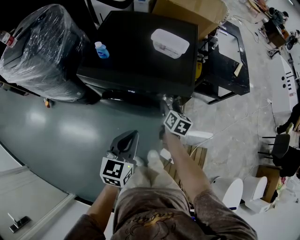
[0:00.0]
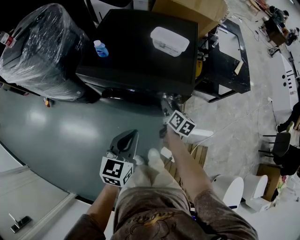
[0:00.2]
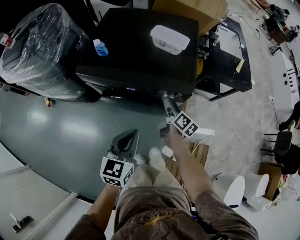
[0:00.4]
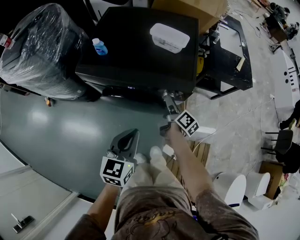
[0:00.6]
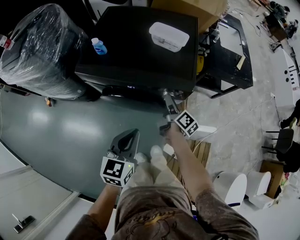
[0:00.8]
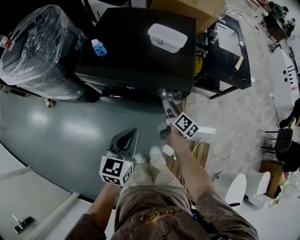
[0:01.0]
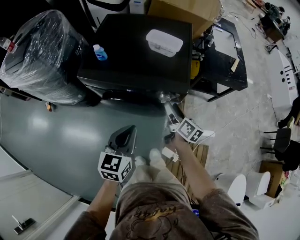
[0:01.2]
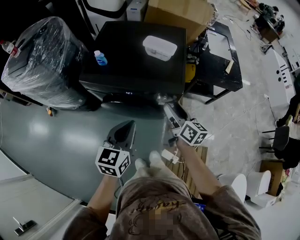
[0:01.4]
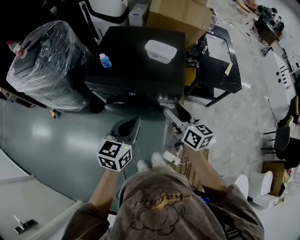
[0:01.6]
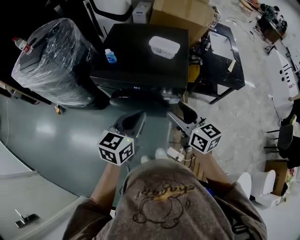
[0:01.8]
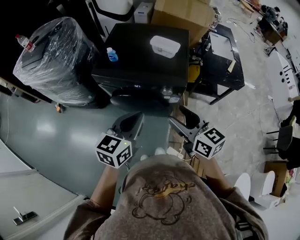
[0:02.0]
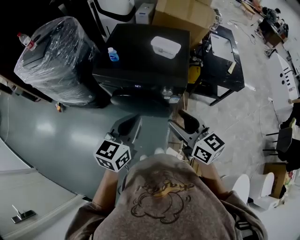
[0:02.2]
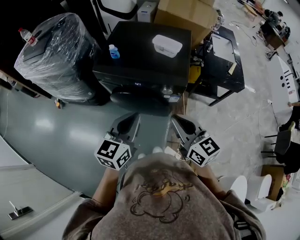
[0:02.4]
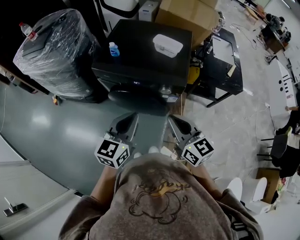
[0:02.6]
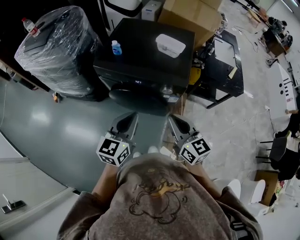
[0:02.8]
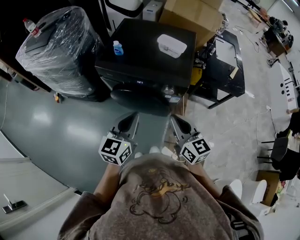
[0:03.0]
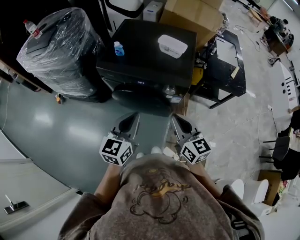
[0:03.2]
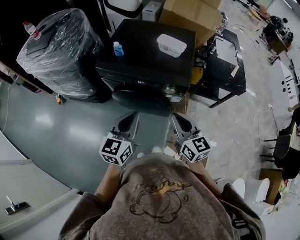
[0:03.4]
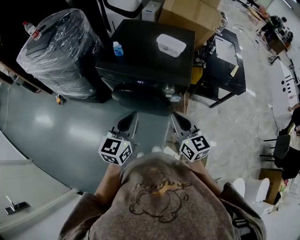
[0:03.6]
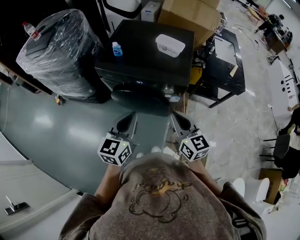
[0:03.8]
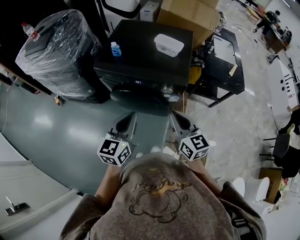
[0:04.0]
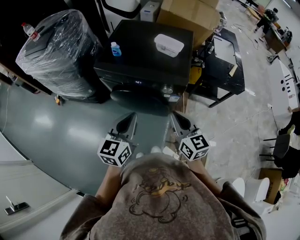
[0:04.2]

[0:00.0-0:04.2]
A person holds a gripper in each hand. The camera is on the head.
0:00.0 to 0:01.4: The right gripper is displaced upward by approximately 15 cm, and changes its angle by about 30 degrees. Meanwhile the left gripper heads upward, covering approximately 5 cm.
0:01.4 to 0:02.8: The left gripper heads backward, covering about 5 cm. Meanwhile the right gripper goes some 15 cm backward and upward, changes its angle by approximately 30 degrees, and closes.
0:02.8 to 0:04.2: The grippers move only a little.

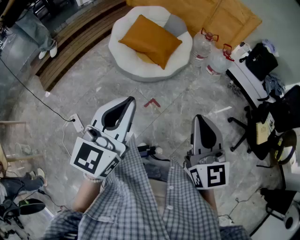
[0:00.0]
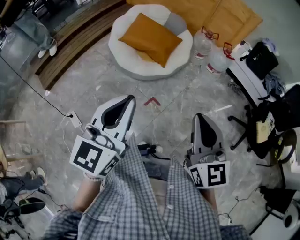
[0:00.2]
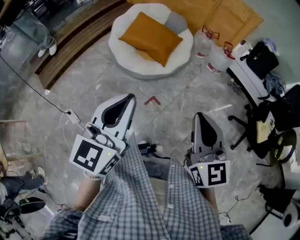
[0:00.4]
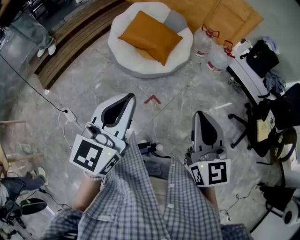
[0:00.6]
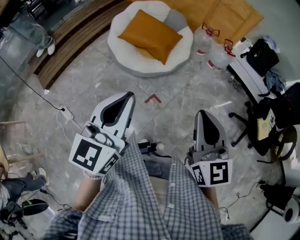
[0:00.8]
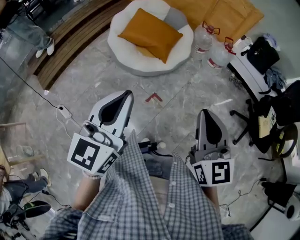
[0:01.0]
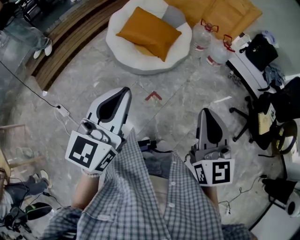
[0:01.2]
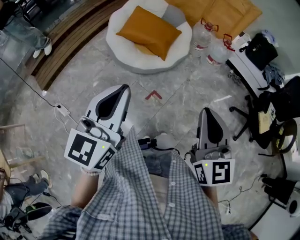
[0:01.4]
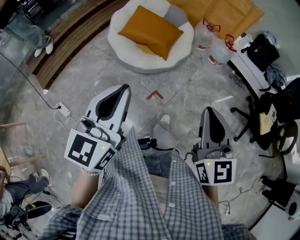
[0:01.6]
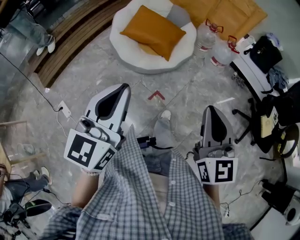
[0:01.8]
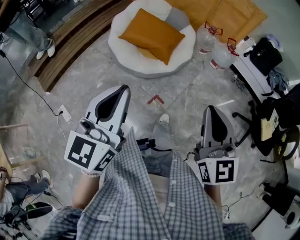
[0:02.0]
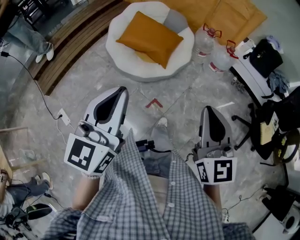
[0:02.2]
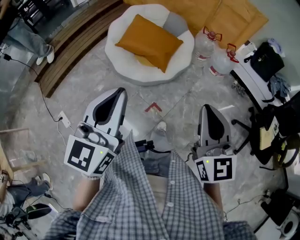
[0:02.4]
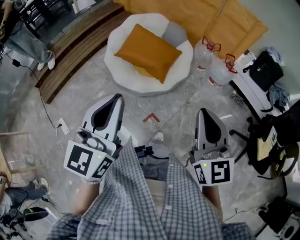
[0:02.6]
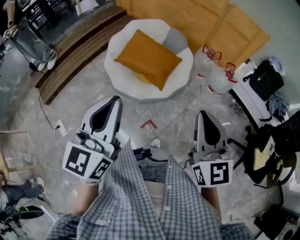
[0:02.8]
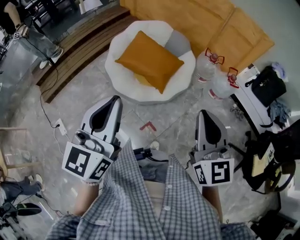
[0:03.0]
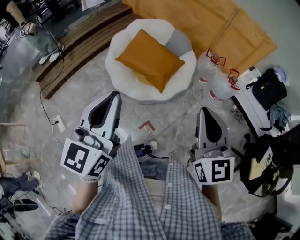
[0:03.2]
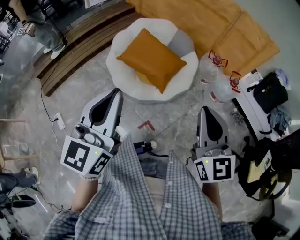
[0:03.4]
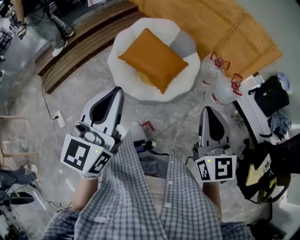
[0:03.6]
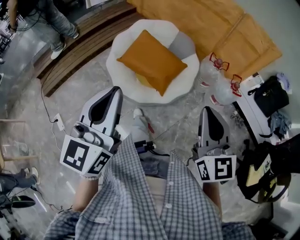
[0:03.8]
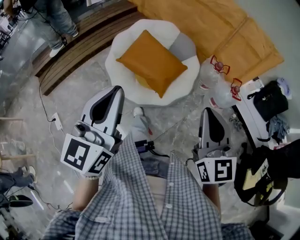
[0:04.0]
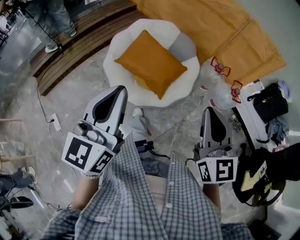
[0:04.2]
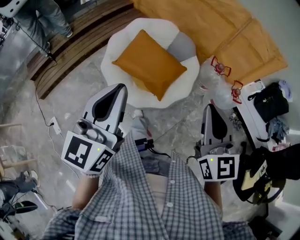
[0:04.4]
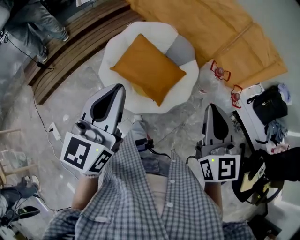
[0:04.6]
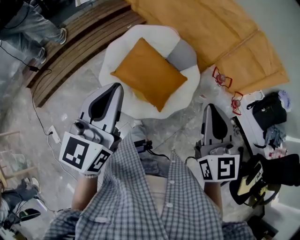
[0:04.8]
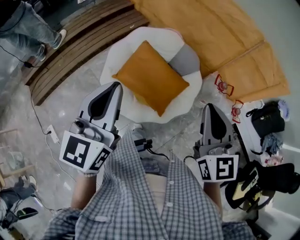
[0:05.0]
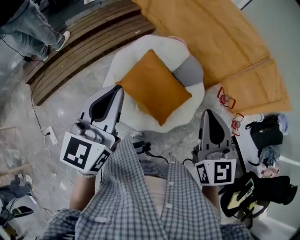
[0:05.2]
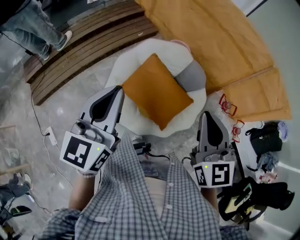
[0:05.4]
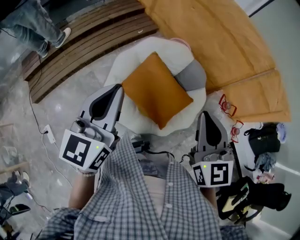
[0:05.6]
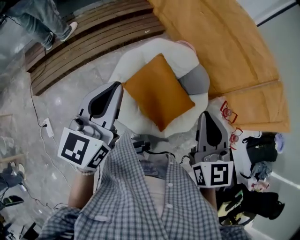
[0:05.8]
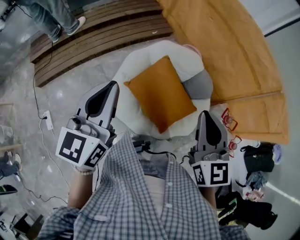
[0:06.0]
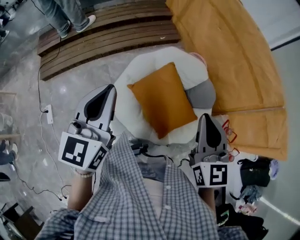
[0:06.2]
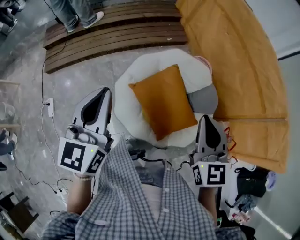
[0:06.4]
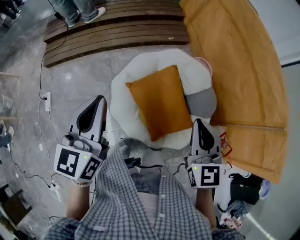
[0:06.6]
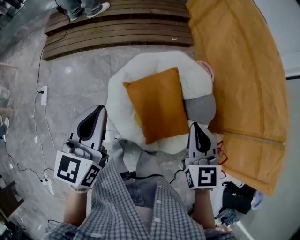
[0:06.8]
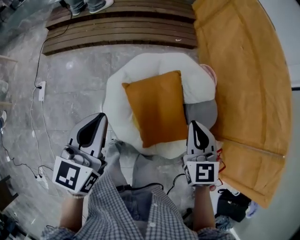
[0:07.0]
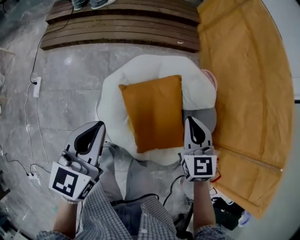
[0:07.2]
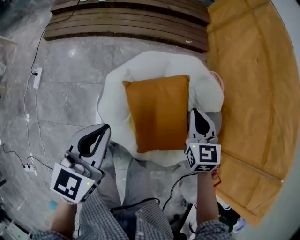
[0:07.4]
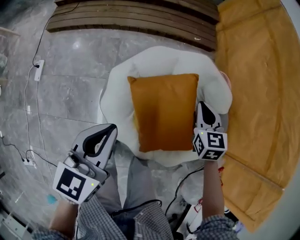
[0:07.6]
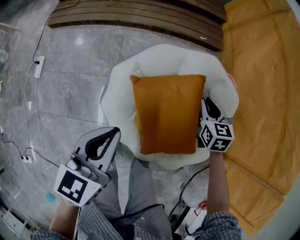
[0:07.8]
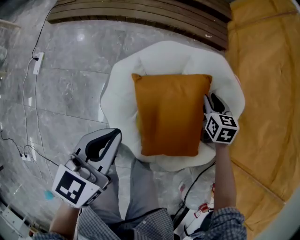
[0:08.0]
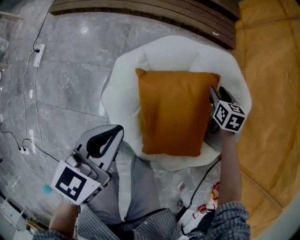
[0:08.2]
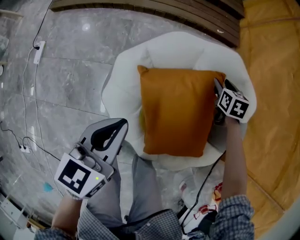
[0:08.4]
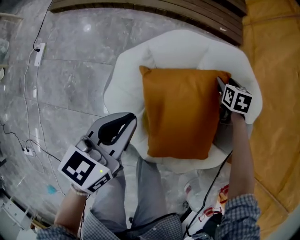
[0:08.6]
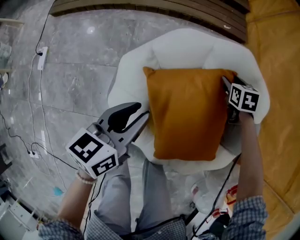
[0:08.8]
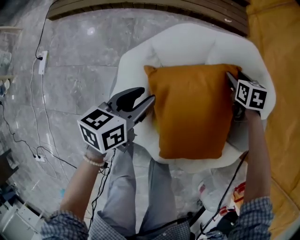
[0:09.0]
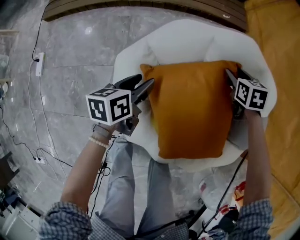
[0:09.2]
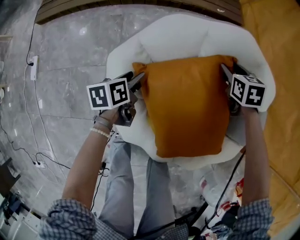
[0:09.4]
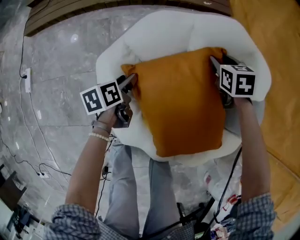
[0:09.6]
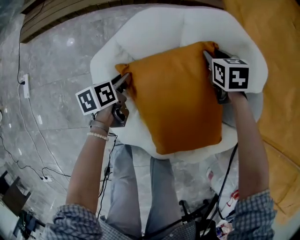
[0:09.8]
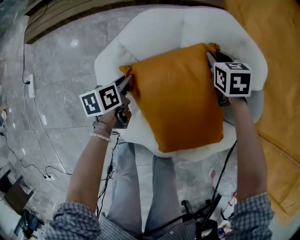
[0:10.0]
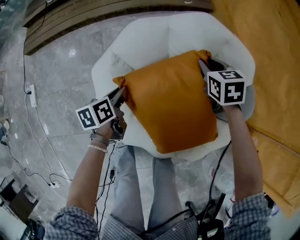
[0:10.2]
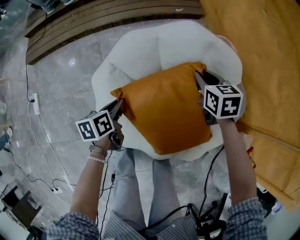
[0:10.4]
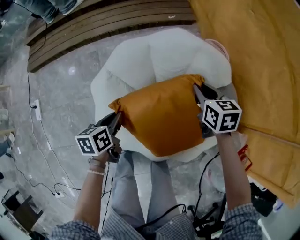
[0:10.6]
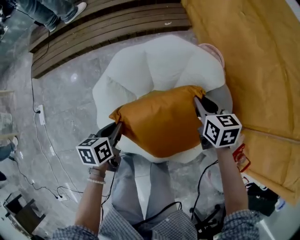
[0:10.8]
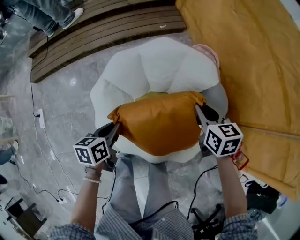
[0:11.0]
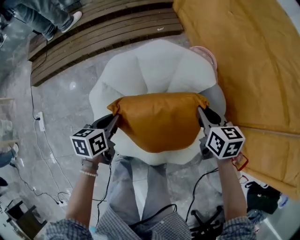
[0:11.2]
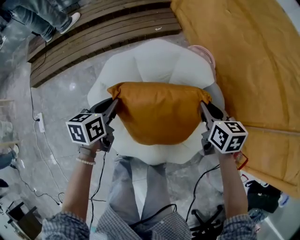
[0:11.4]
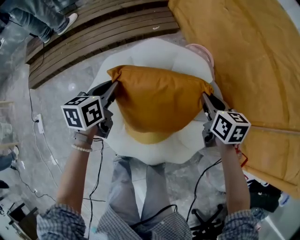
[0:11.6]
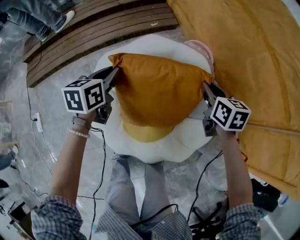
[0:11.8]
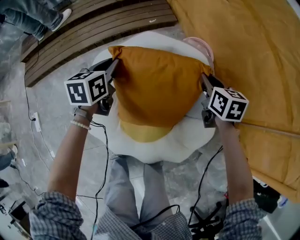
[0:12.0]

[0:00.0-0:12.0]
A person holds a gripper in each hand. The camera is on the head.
0:00.0 to 0:01.6: The left gripper moves to the left, some 5 cm.
0:01.6 to 0:03.0: The grippers both shift forward by approximately 20 cm.
0:03.0 to 0:04.4: Both grippers travel together forward, about 15 cm.
0:04.4 to 0:06.0: The two grippers go some 30 cm forward and to the left.
0:06.0 to 0:07.6: The left gripper travels downward by approximately 20 cm, and rotates some 30 degrees. The right gripper goes about 40 cm downward and forward, and changes its angle by about 30 degrees.
0:07.6 to 0:09.0: The right gripper travels downward and forward by some 25 cm, changes its angle by approximately 20 degrees, and opens, while the left gripper moves downward, about 25 cm, turns by some 30 degrees, and opens its fingers.
0:09.0 to 0:10.4: The right gripper moves upward and backward, roughly 15 cm, and closes its fingers; the left gripper goes downward and returns, approximately 15 cm each way, and closes its fingers.
0:10.4 to 0:12.0: The right gripper goes roughly 20 cm to the right and upward, and turns by approximately 20 degrees, while the left gripper moves forward, upward and to the right, some 25 cm, and changes its angle by some 30 degrees.

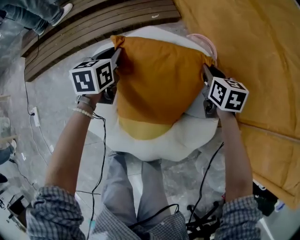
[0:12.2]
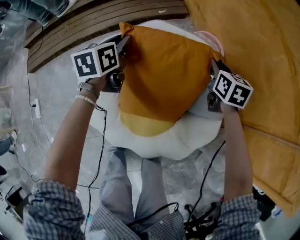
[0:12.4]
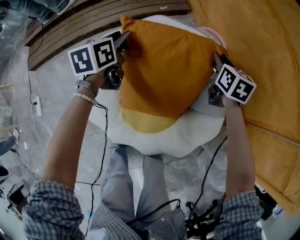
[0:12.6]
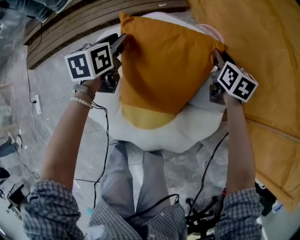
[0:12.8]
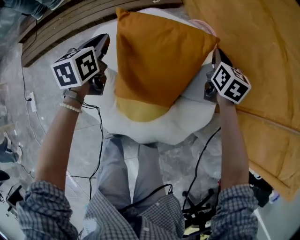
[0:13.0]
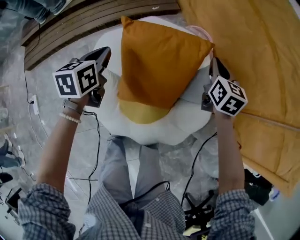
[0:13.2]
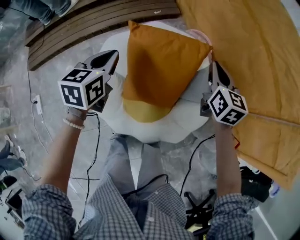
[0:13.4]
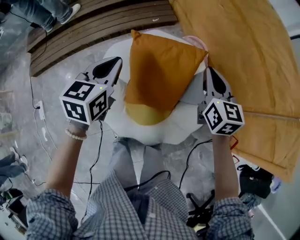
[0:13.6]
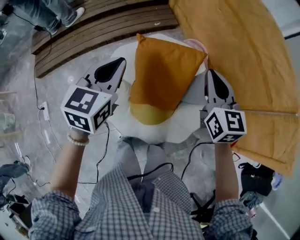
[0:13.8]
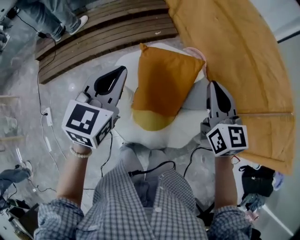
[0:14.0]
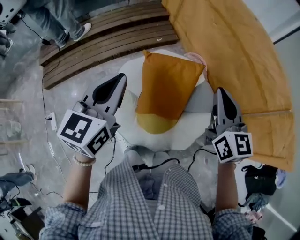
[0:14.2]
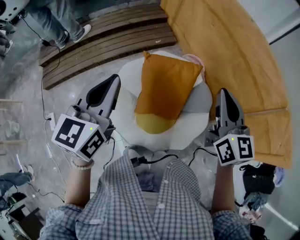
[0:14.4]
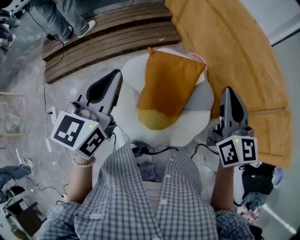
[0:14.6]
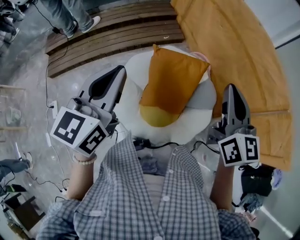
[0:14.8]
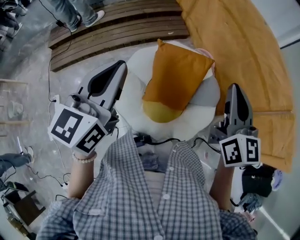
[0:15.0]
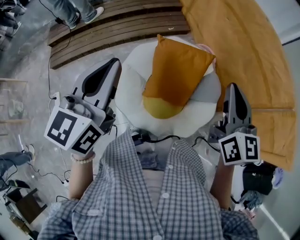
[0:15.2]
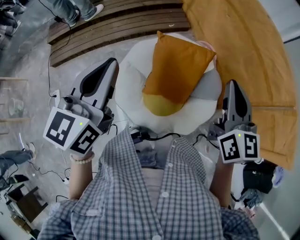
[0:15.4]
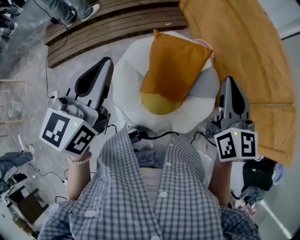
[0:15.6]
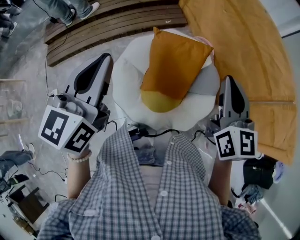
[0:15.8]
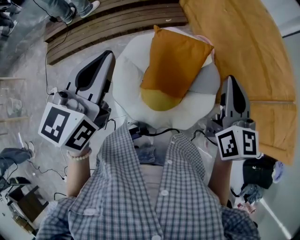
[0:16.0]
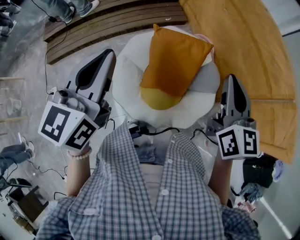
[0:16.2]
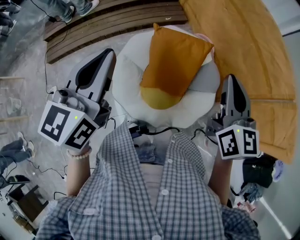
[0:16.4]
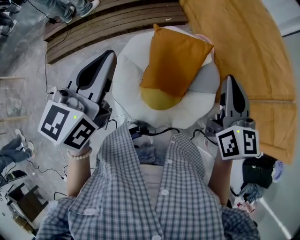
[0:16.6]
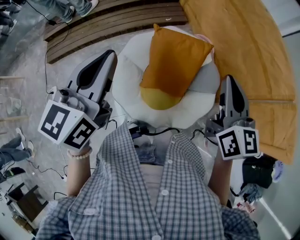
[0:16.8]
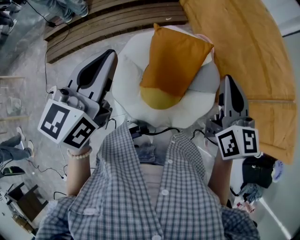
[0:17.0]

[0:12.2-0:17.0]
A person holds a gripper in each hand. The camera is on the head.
0:12.2 to 0:13.8: The grippers both shift upward and backward by roughly 30 cm. The left gripper swivels about 20 degrees, and opens, then closes again; the right gripper swivels approximately 30 degrees.
0:13.8 to 0:15.4: The two grippers go some 20 cm upward and backward.
0:15.4 to 0:17.0: There are only small adjustments of the grippers.

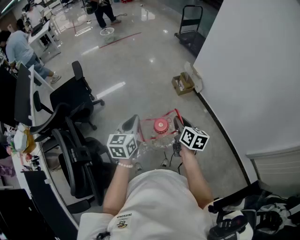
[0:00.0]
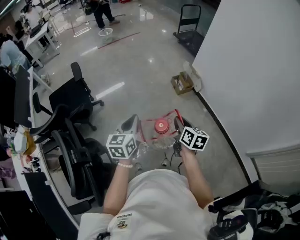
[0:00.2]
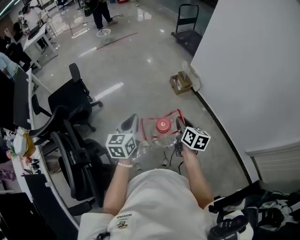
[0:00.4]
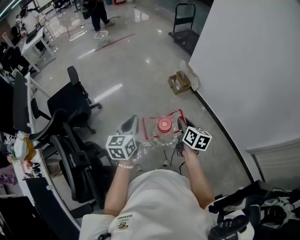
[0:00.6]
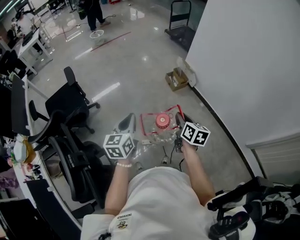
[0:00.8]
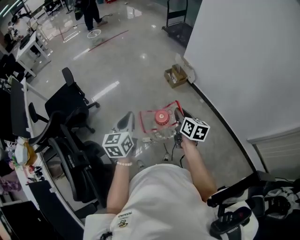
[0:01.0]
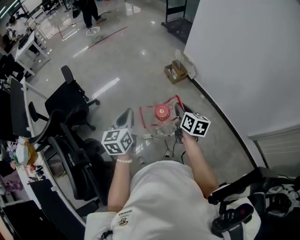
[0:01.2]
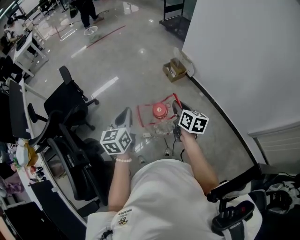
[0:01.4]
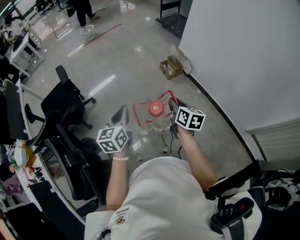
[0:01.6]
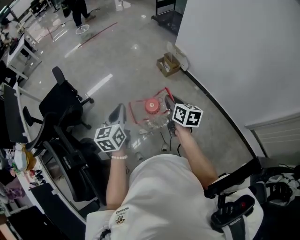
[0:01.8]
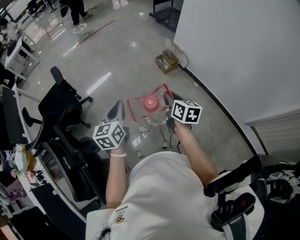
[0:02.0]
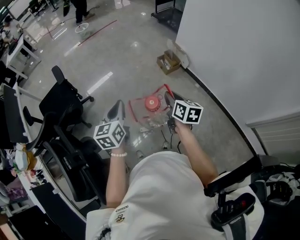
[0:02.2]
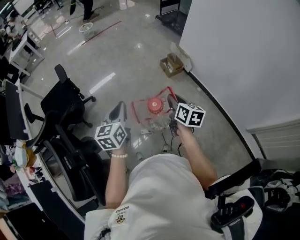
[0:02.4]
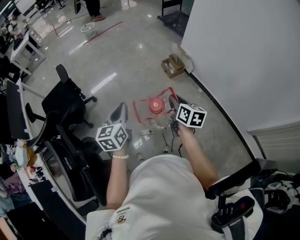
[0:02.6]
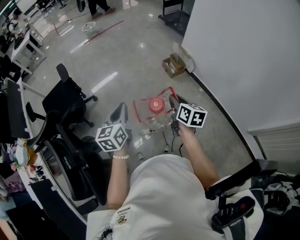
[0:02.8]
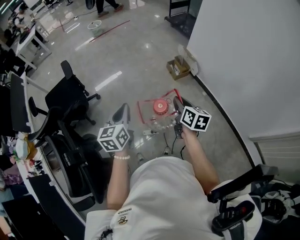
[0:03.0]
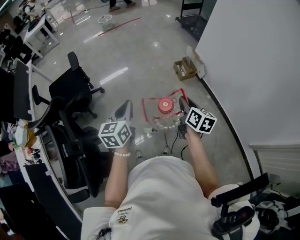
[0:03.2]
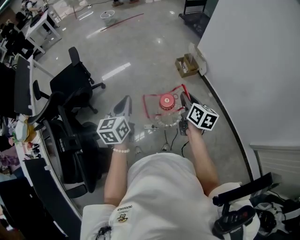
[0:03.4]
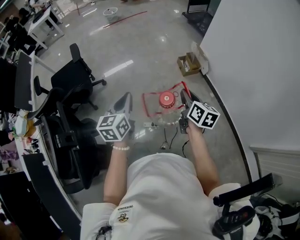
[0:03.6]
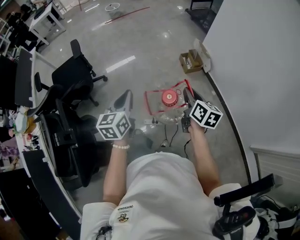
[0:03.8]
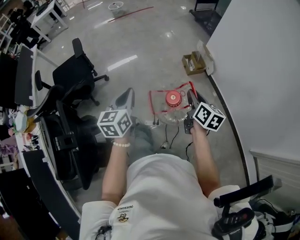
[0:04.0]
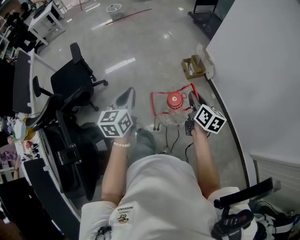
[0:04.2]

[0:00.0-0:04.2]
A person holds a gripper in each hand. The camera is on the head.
0:00.0 to 0:01.4: The grippers make only small movements.
0:01.4 to 0:02.8: There are only small adjustments of the grippers.
0:02.8 to 0:04.2: Both grippers travel together forward, approximately 10 cm.
